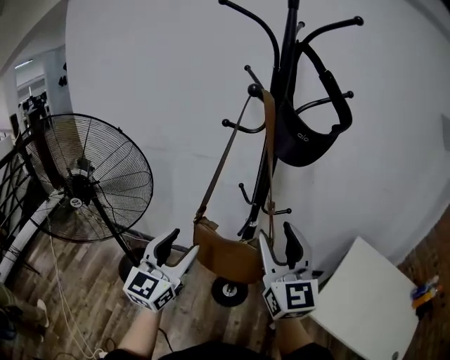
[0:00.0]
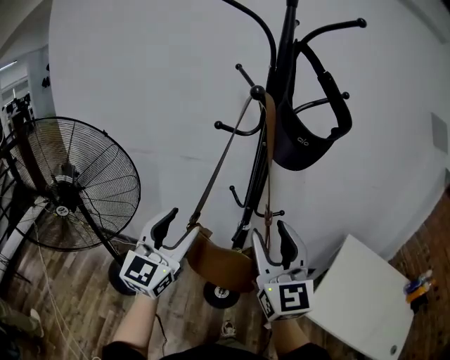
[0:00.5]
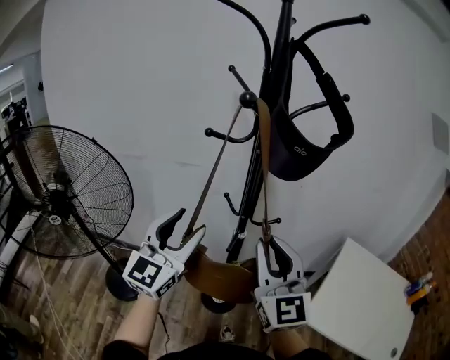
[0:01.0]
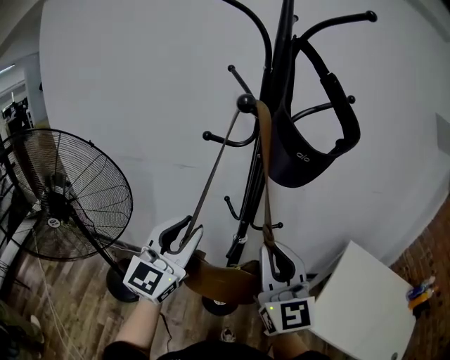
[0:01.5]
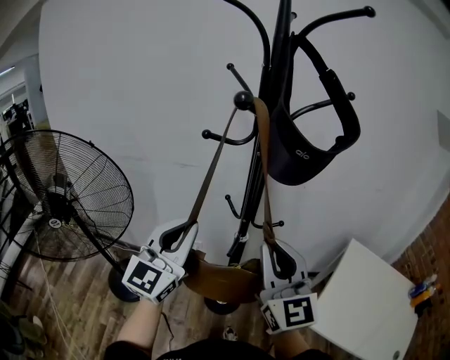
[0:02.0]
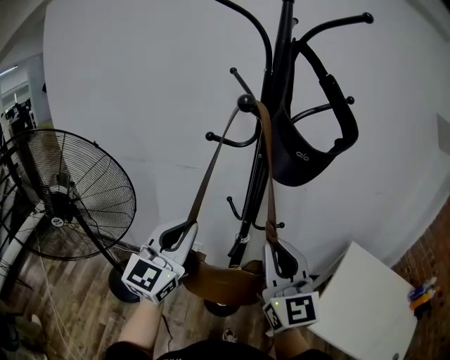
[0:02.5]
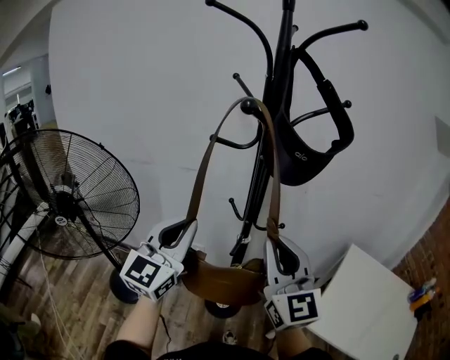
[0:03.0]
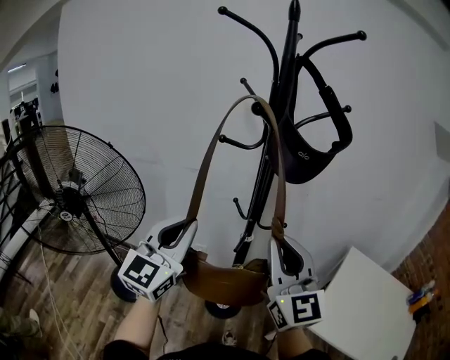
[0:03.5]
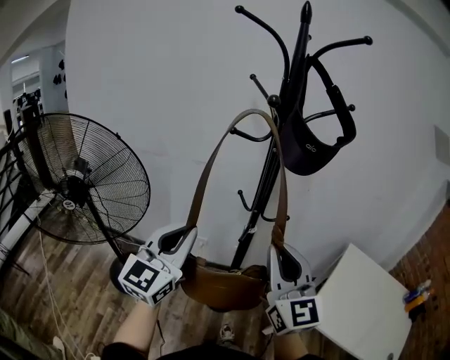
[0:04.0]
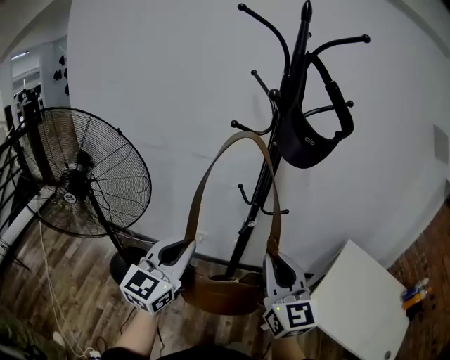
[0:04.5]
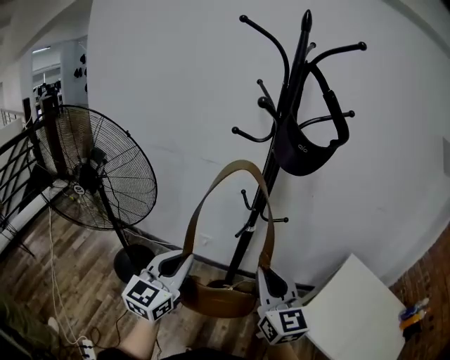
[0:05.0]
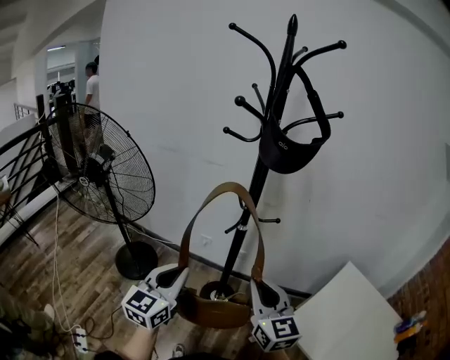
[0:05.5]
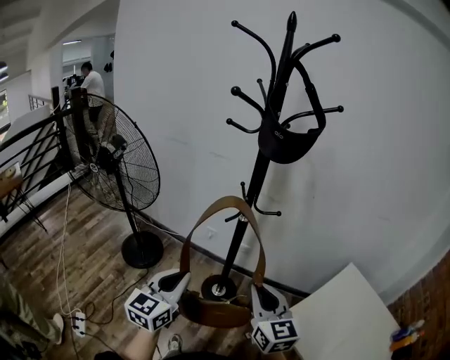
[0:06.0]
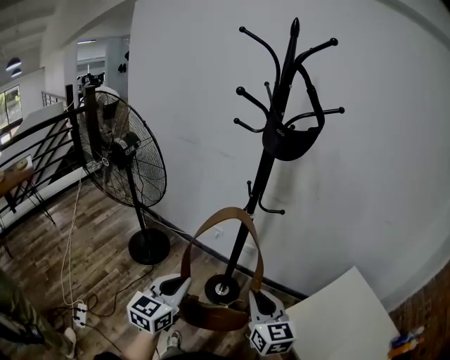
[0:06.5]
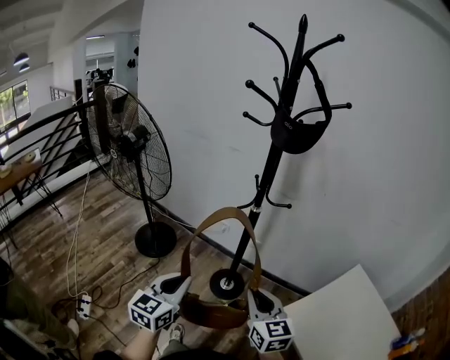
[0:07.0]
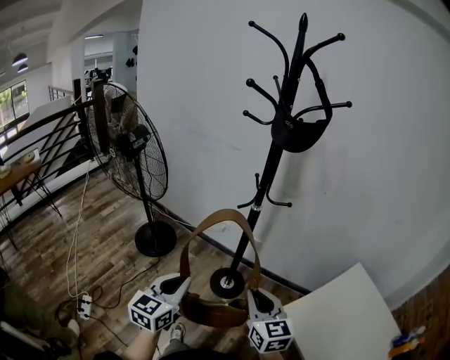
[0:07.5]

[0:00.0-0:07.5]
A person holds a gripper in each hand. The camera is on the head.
0:00.0 to 0:02.0: The right gripper closes; the left gripper is displaced forward and upward by roughly 10 cm, and closes.
0:02.0 to 0:04.0: The grippers both shift backward by roughly 10 cm.
0:04.0 to 0:05.5: The left gripper travels downward, backward and to the right by some 15 cm. Meanwhile the right gripper heads downward, to the right and backward, covering roughly 15 cm, and changes its angle by approximately 20 degrees.
0:05.5 to 0:07.5: The right gripper moves downward and backward, about 10 cm. The left gripper moves backward and downward, about 15 cm.

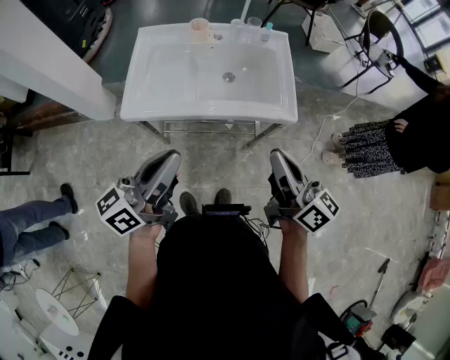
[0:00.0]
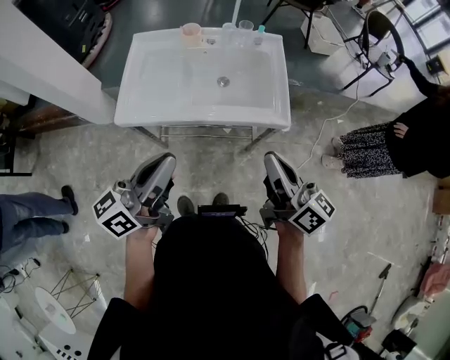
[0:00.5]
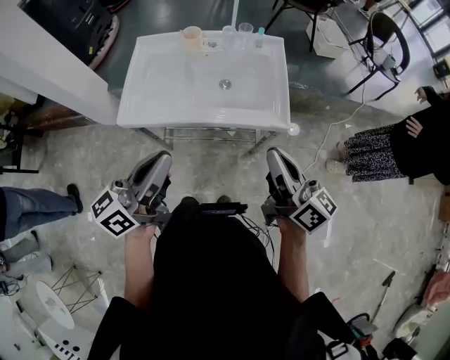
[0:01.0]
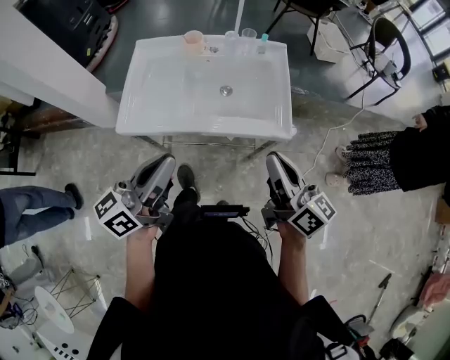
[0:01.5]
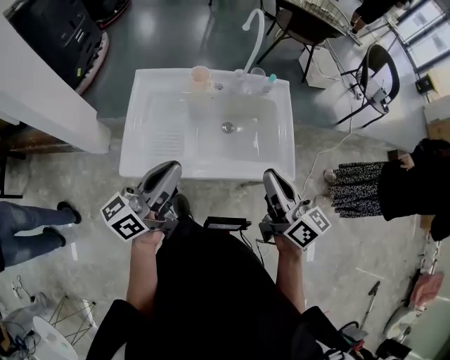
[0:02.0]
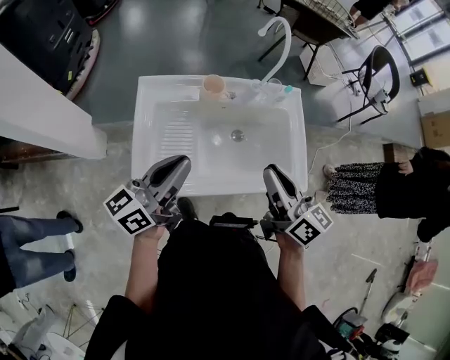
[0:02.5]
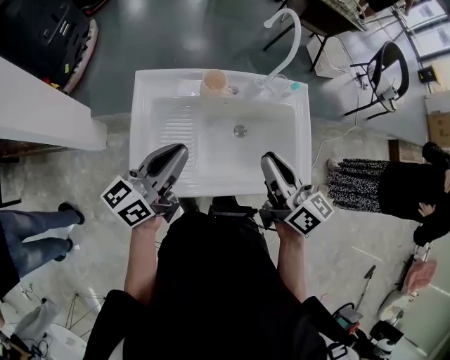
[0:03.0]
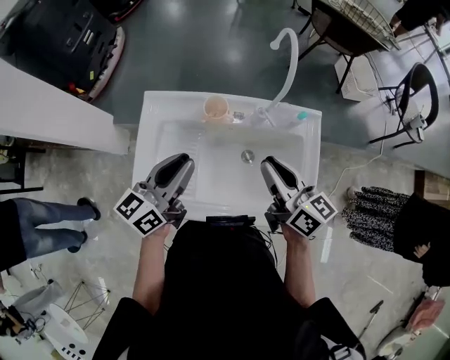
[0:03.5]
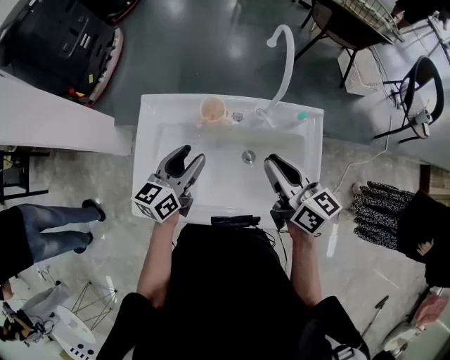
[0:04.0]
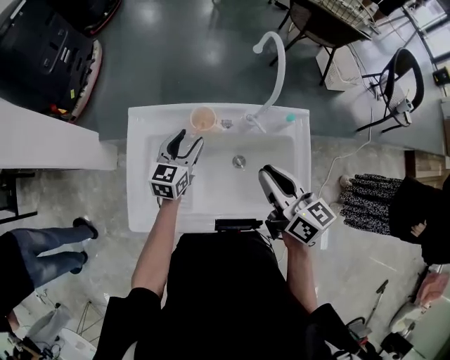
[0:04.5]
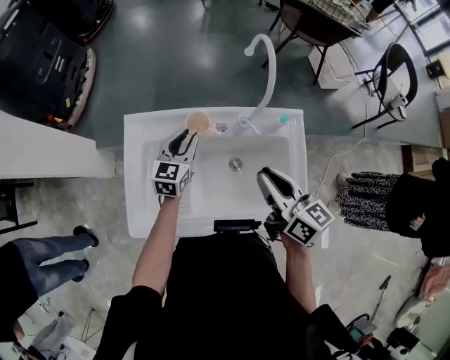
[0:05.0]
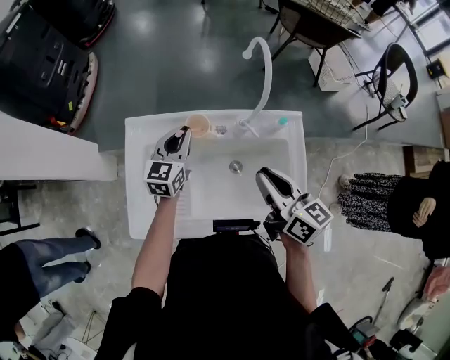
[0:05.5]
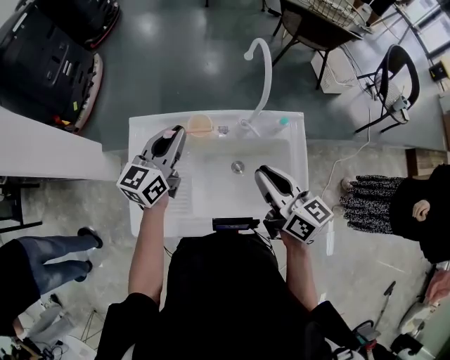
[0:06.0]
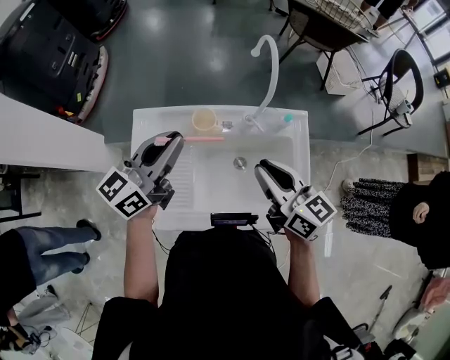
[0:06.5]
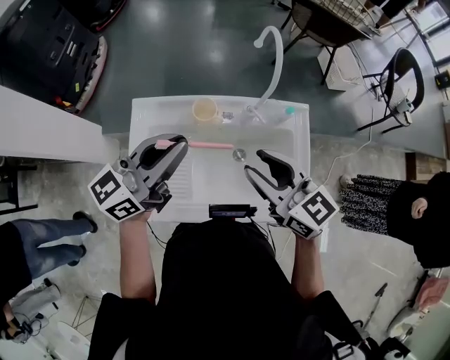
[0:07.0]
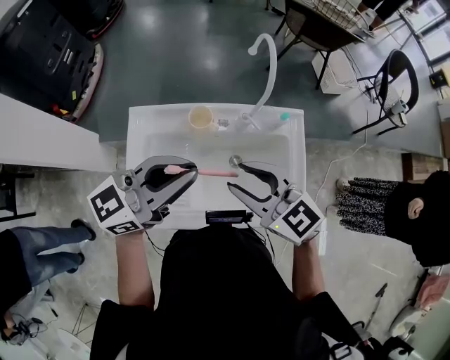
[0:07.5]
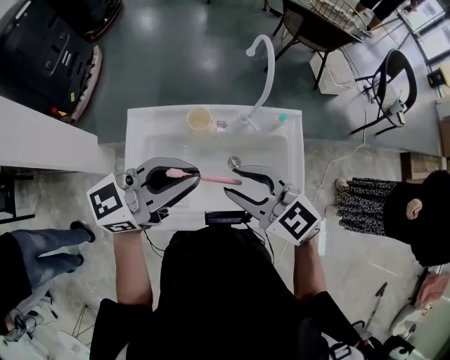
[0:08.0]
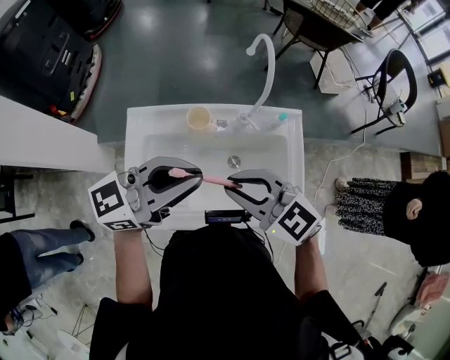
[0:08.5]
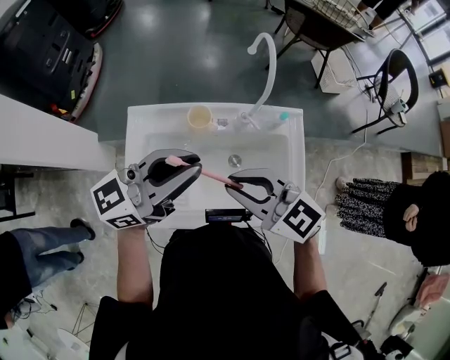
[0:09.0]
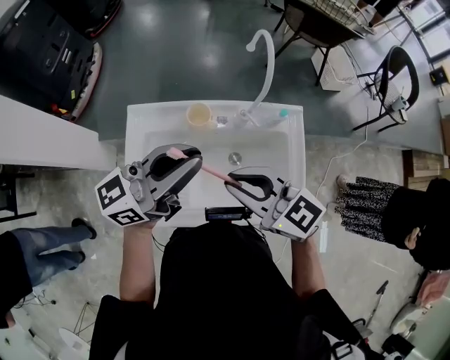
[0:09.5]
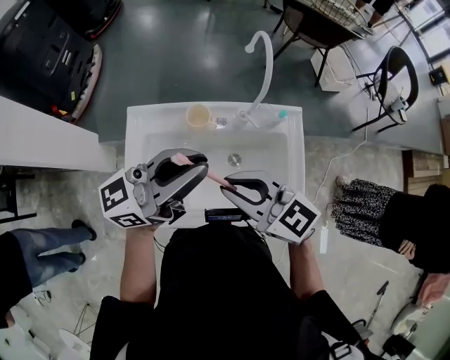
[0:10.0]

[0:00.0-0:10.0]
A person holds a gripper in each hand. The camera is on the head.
0:00.0 to 0:02.0: Both grippers travel together forward, some 15 cm.
0:02.0 to 0:04.0: The left gripper heads forward and downward, covering roughly 25 cm, swivels about 30 degrees, and opens up. Meanwhile the right gripper shifts roughly 25 cm forward.
0:04.0 to 0:06.0: The left gripper heads forward and upward, covering approximately 10 cm, and closes.
0:06.0 to 0:08.0: The left gripper moves approximately 20 cm, and changes its angle by some 40 degrees; the right gripper ends up roughly 10 cm from where it was, rotates some 50 degrees, and opens.
0:08.0 to 0:10.0: The right gripper closes up.

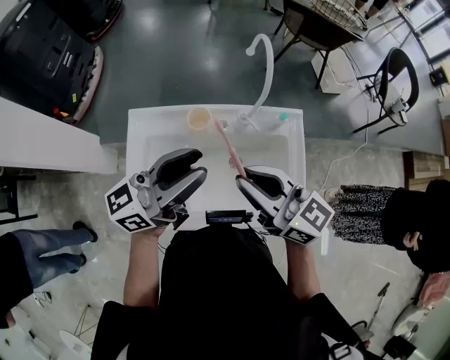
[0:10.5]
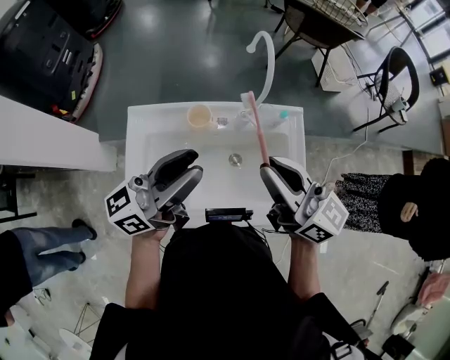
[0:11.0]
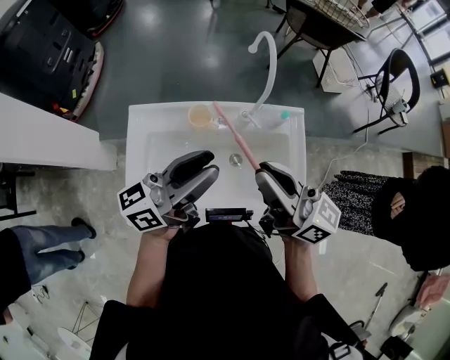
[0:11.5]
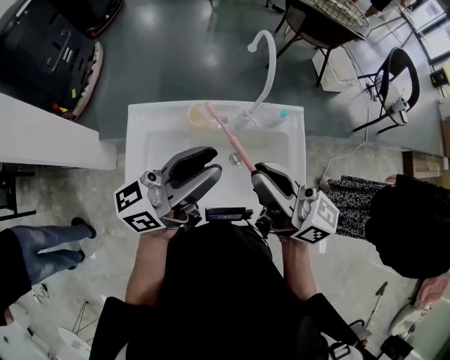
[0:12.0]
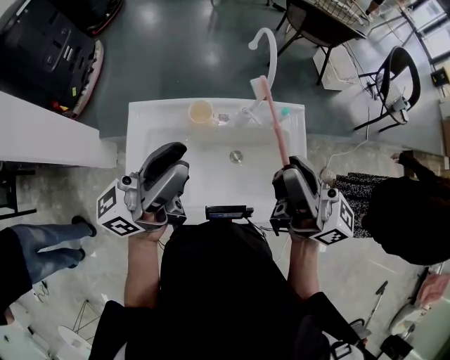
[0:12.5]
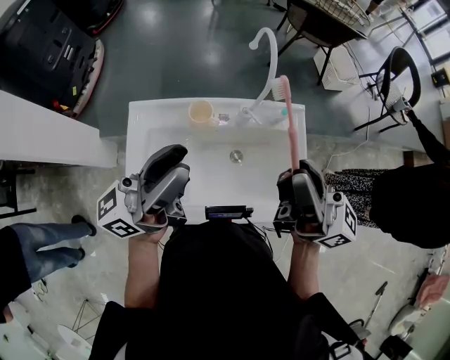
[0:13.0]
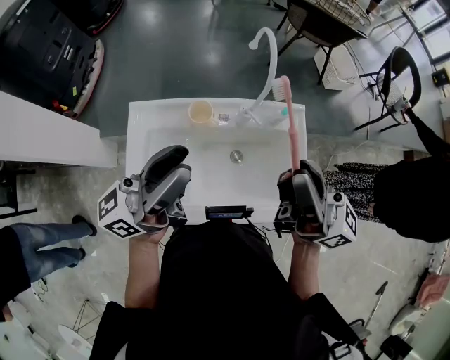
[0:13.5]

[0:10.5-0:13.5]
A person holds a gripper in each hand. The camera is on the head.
0:10.5 to 0:12.0: The right gripper turns by roughly 20 degrees.
0:12.0 to 0:13.5: The left gripper changes place by approximately 5 cm. The right gripper travels to the right and upward by roughly 10 cm.

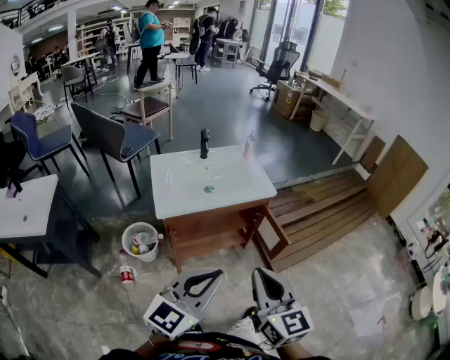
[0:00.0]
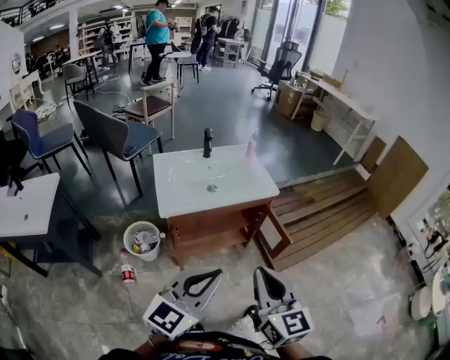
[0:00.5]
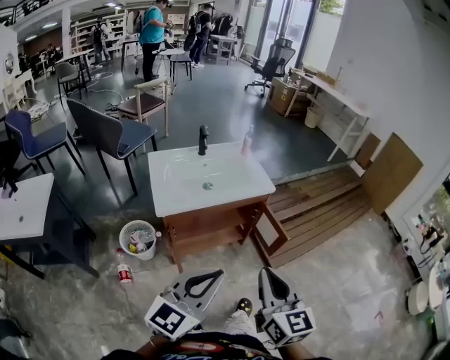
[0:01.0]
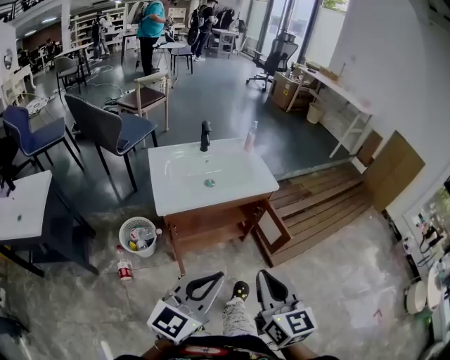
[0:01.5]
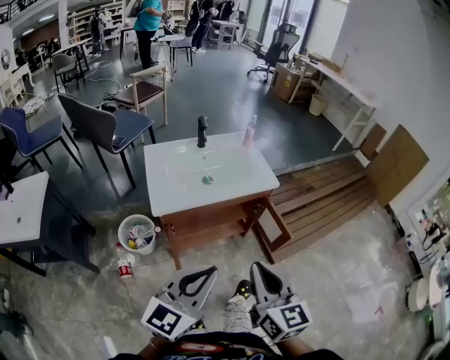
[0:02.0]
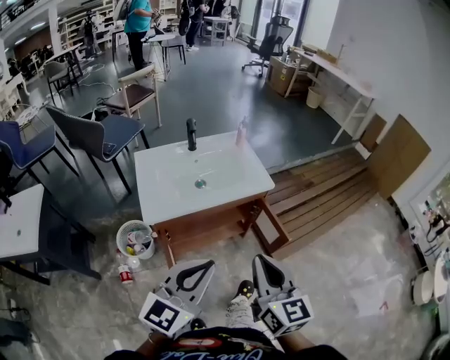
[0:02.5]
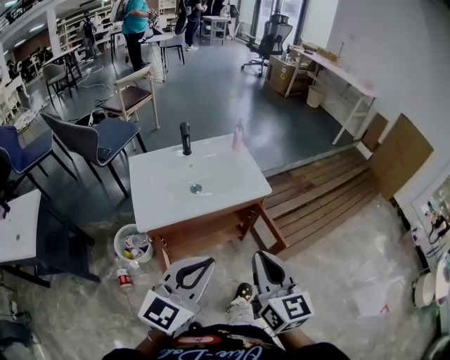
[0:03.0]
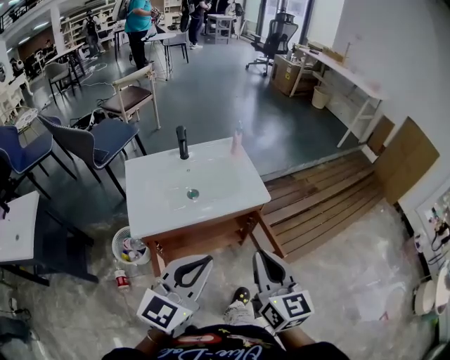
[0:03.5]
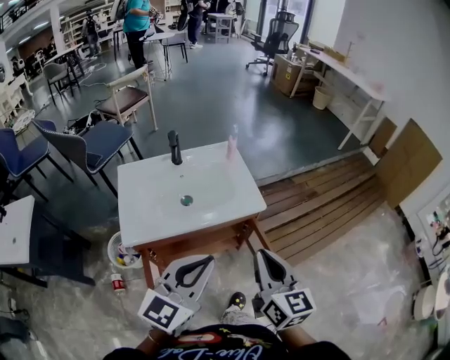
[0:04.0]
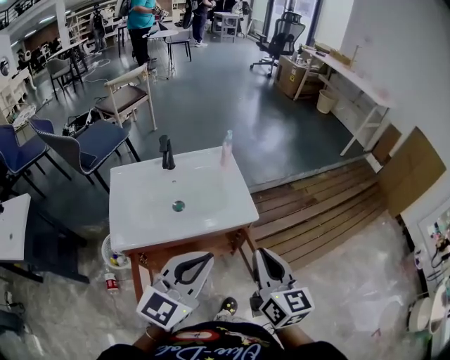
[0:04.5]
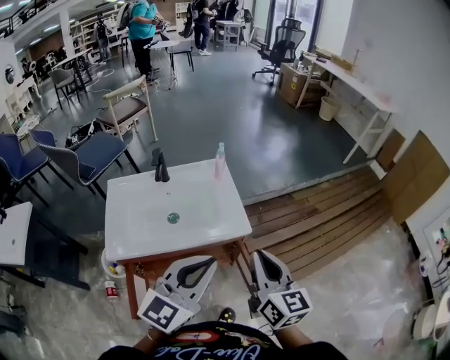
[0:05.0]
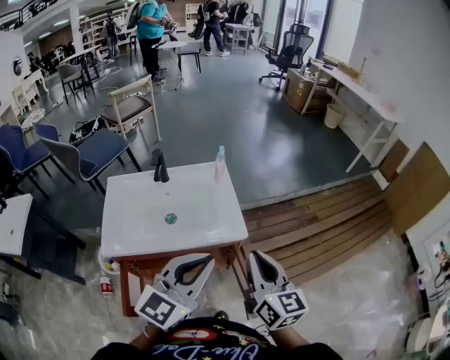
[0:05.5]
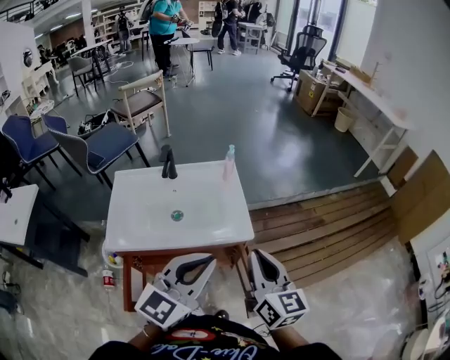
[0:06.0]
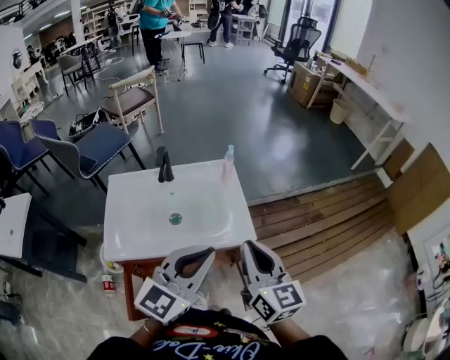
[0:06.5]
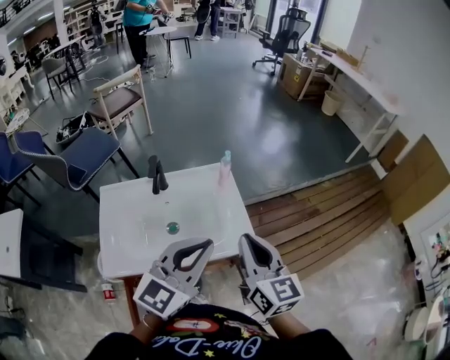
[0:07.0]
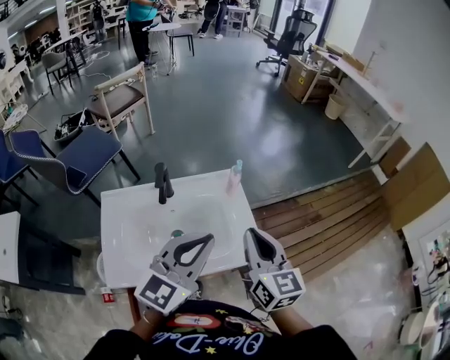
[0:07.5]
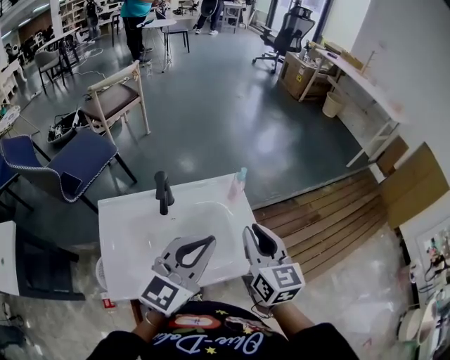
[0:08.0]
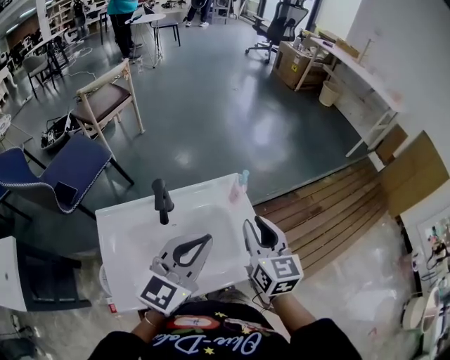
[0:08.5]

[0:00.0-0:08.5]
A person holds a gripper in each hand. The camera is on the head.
0:00.0 to 0:02.0: The right gripper moves approximately 5 cm.
0:02.0 to 0:04.0: The left gripper heads forward, covering about 20 cm; the right gripper shifts roughly 20 cm forward and to the right.
0:04.0 to 0:06.5: The right gripper shifts about 15 cm forward. Meanwhile the left gripper goes some 15 cm forward and to the right.
0:06.5 to 0:08.5: The grippers both shift forward and to the left by approximately 20 cm. The right gripper opens.
